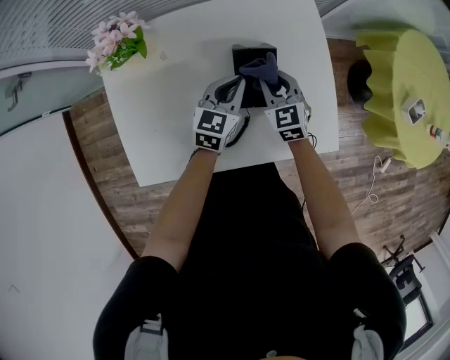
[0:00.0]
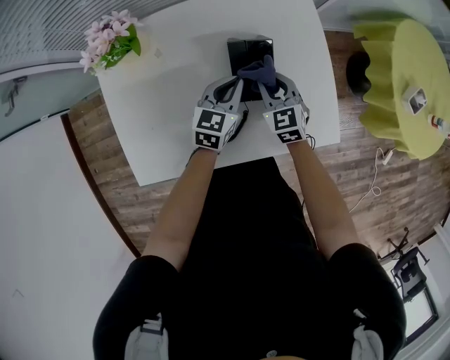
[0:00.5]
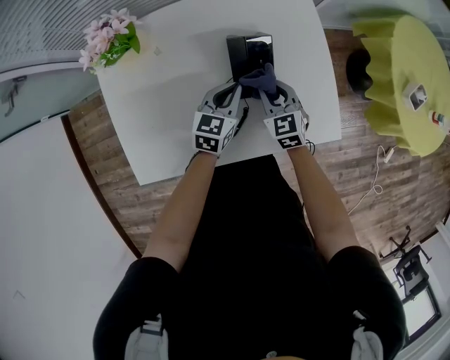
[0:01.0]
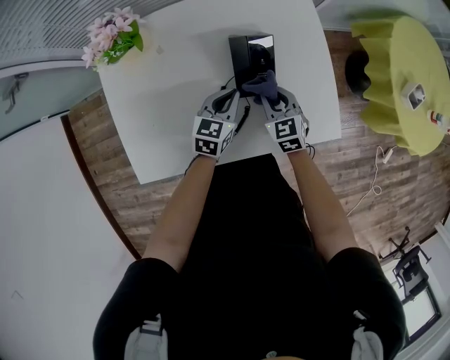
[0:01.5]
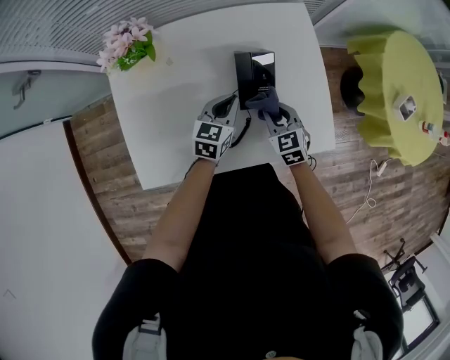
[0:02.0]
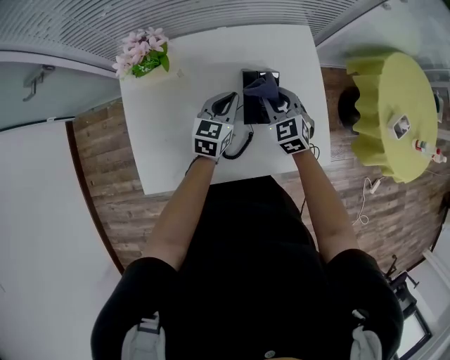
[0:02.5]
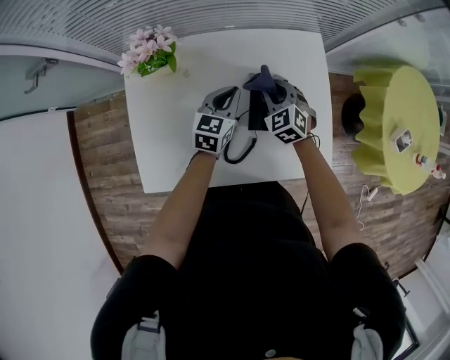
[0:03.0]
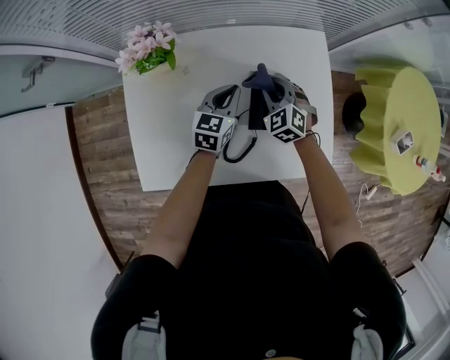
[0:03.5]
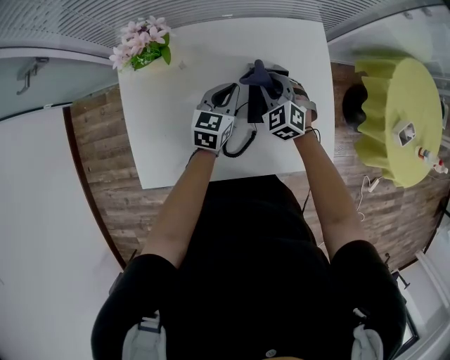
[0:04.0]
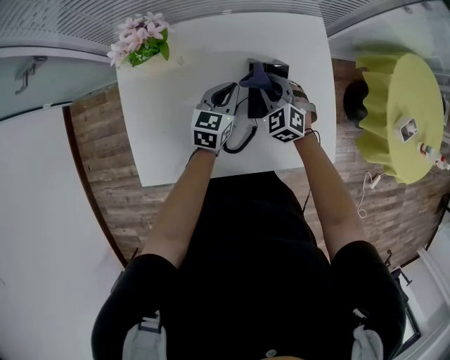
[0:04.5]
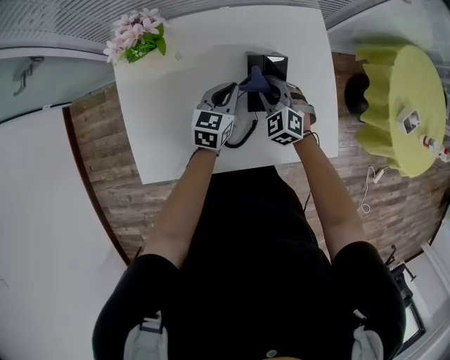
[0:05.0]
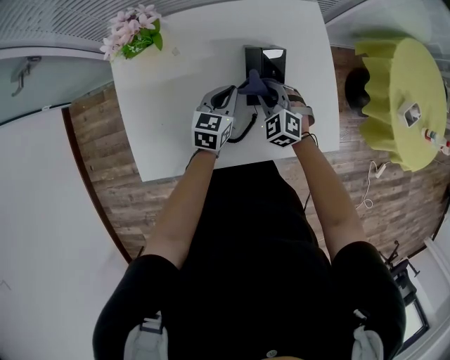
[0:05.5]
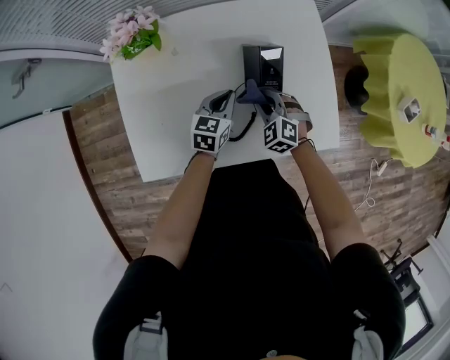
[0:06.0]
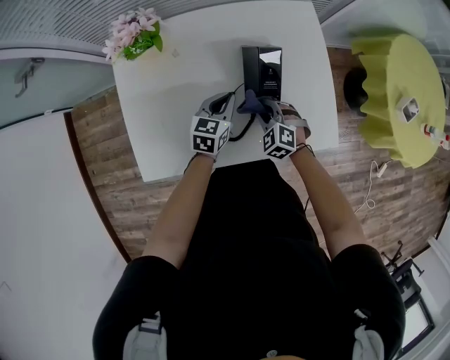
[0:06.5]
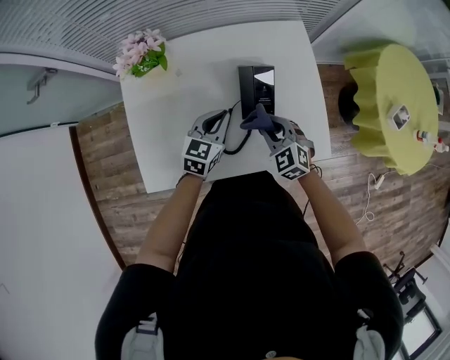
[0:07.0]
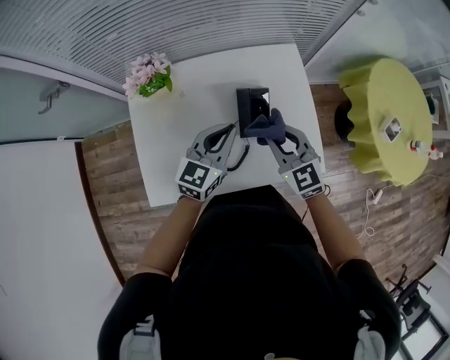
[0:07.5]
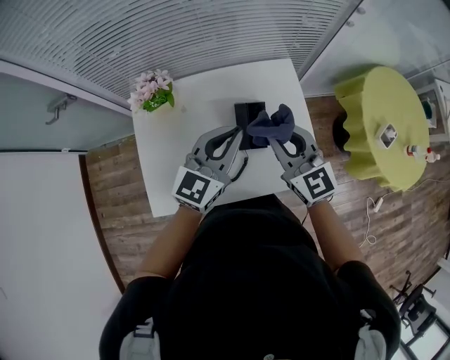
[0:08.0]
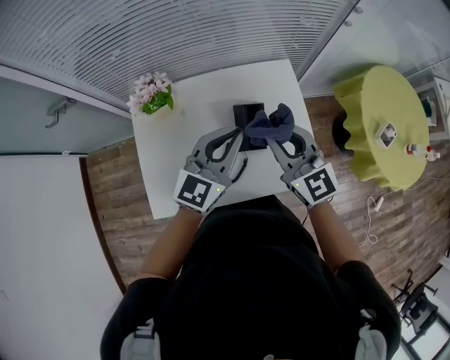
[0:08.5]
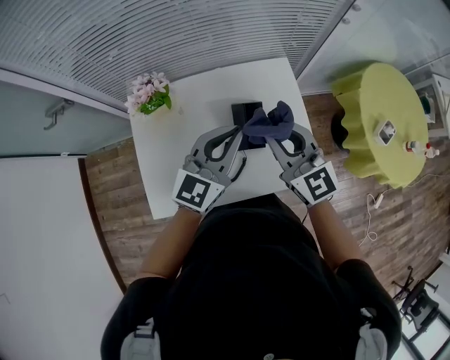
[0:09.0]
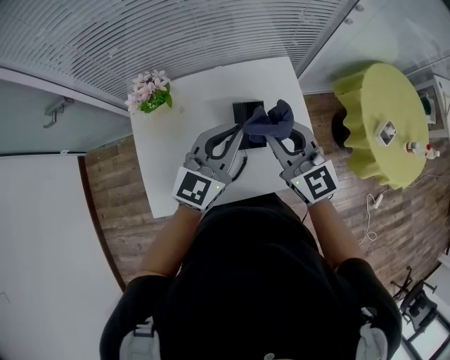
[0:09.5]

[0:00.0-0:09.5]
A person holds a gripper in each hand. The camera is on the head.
0:00.0 to 0:02.0: The left gripper travels backward by about 5 cm; the right gripper heads backward, covering about 10 cm.
0:02.0 to 0:04.0: The right gripper heads forward and to the left, covering roughly 15 cm, and rotates approximately 30 degrees. The left gripper travels forward by about 5 cm.
0:04.0 to 0:05.5: The grippers both shift backward by roughly 5 cm.
0:05.5 to 0:07.5: The grippers both shift upward by about 20 cm. The left gripper rotates some 20 degrees. The right gripper changes its angle by roughly 30 degrees.
0:07.5 to 0:09.5: Both grippers travel together upward, roughly 10 cm.

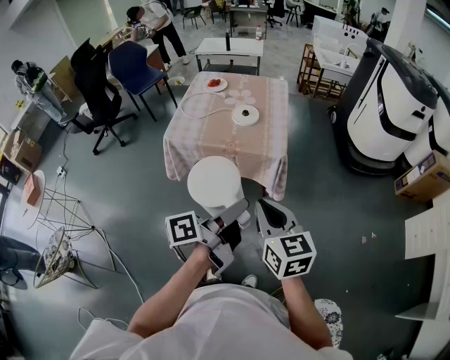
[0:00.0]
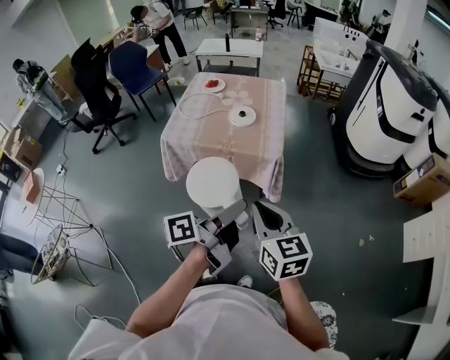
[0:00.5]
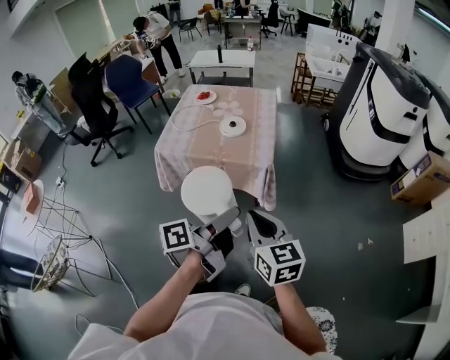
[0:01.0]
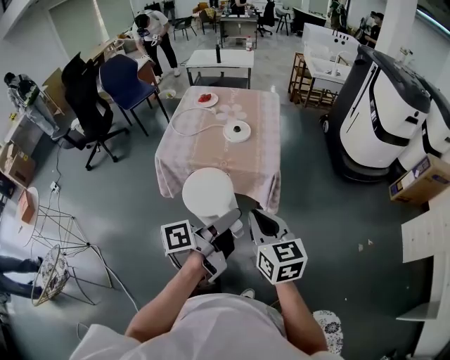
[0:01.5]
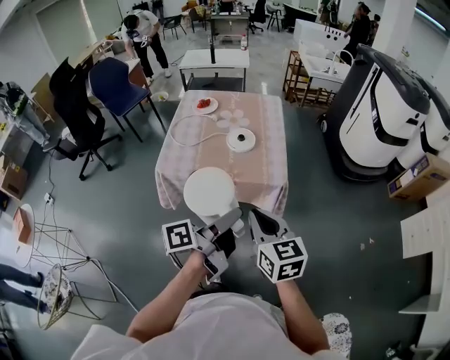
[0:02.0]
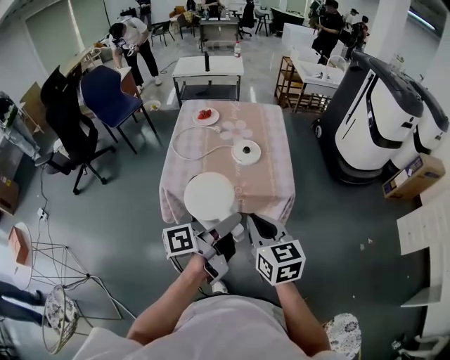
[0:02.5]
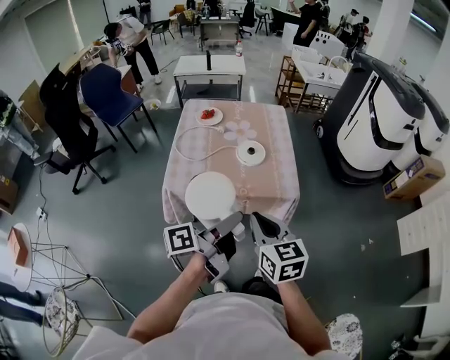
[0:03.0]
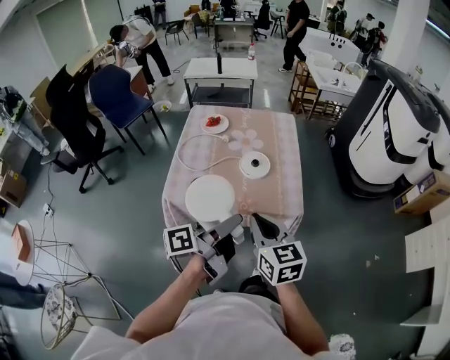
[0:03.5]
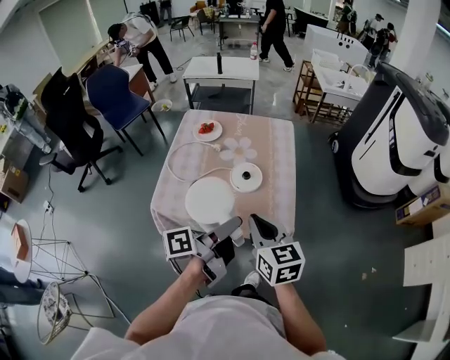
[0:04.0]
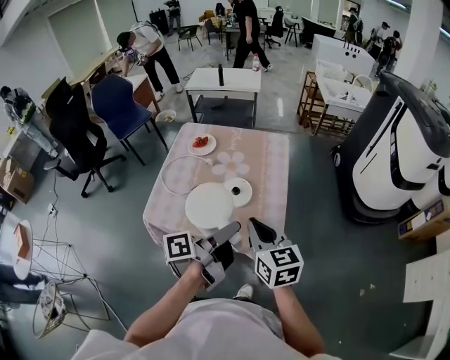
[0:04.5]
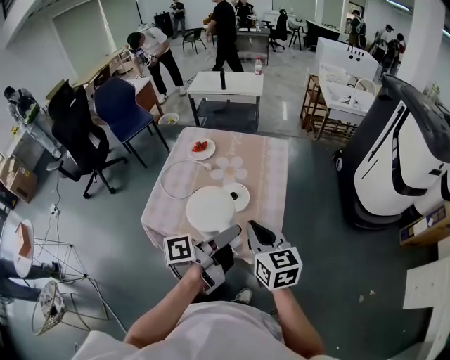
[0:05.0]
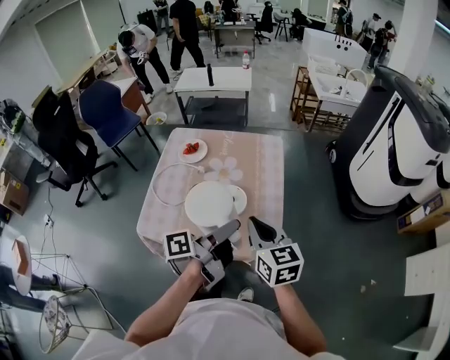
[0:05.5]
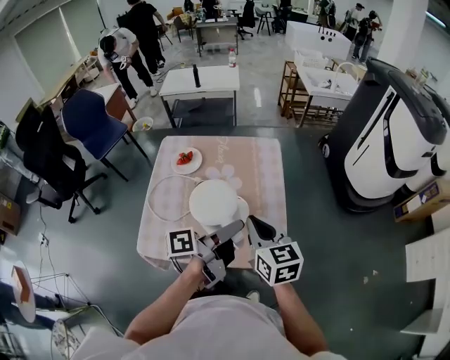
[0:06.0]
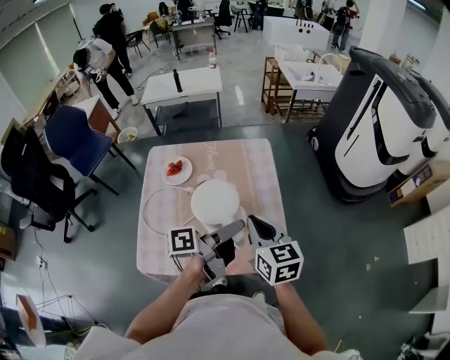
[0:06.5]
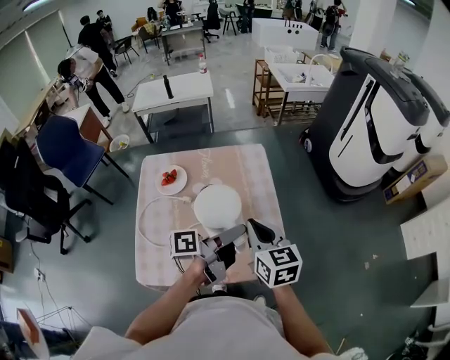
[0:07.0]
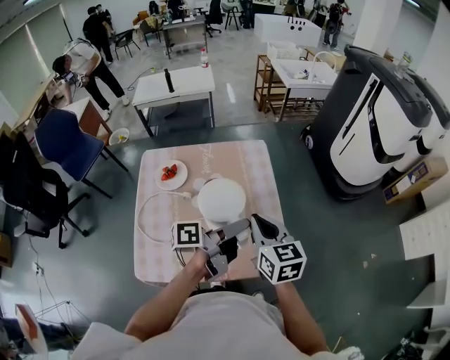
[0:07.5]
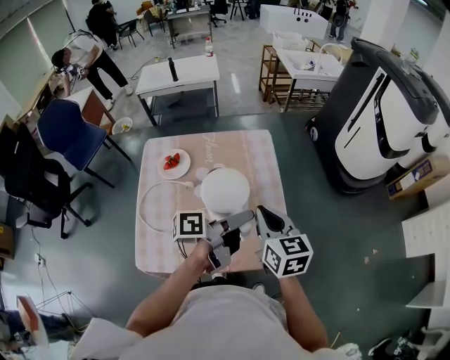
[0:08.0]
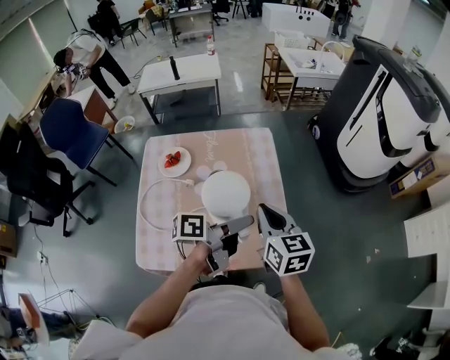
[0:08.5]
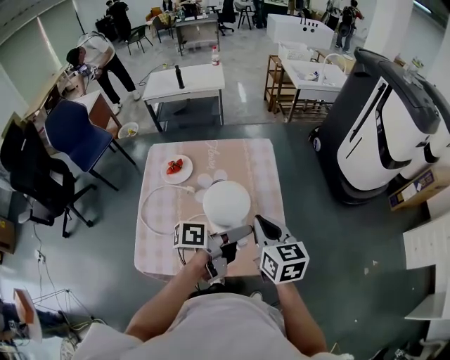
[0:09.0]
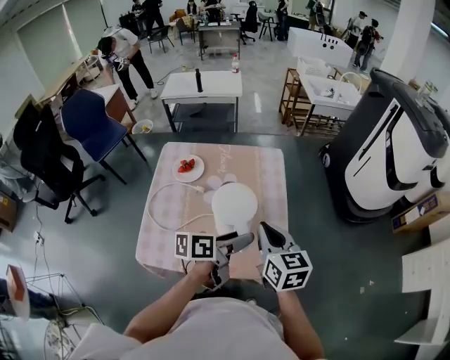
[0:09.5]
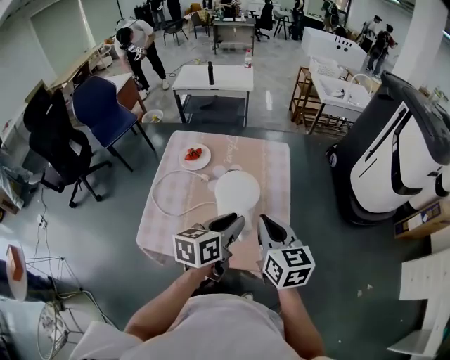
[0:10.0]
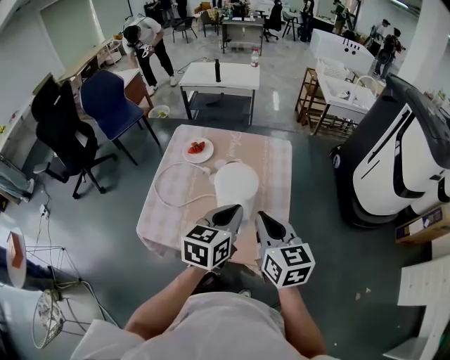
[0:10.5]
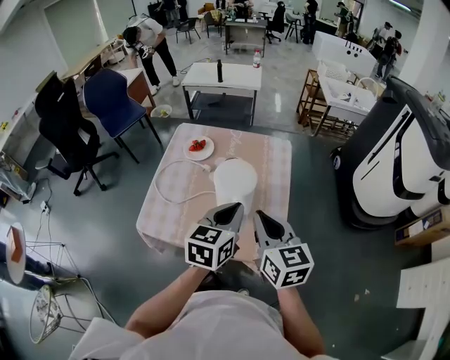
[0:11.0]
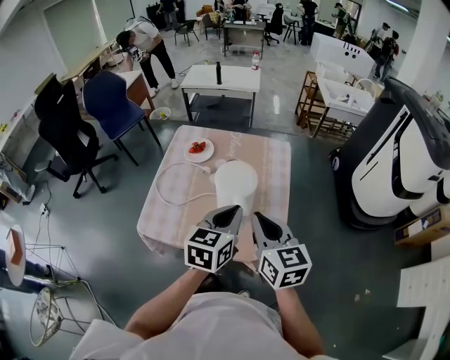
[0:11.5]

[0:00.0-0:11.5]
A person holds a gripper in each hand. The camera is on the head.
0:00.0 to 0:02.0: The right gripper changes place by about 15 cm.
0:02.0 to 0:04.0: The right gripper changes place by some 20 cm.
0:04.0 to 0:06.0: The right gripper ends up roughly 15 cm from where it was.
0:06.0 to 0:07.5: The right gripper moves about 5 cm.
0:09.5 to 0:11.5: The right gripper moves about 10 cm.

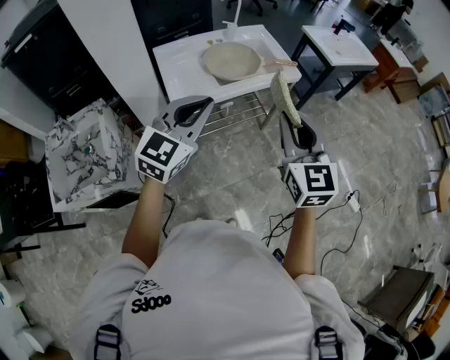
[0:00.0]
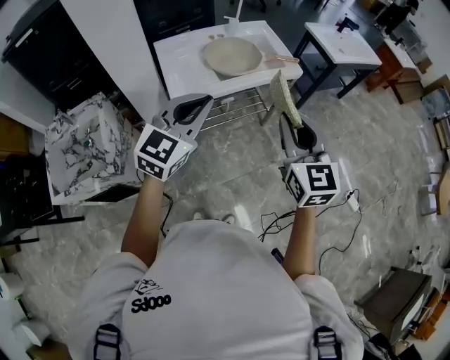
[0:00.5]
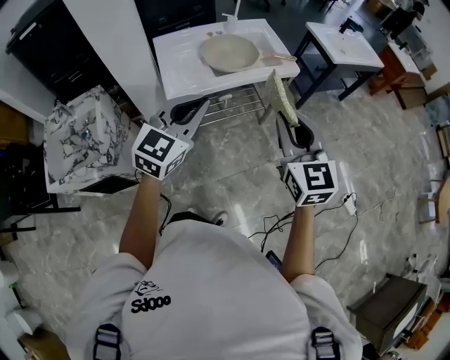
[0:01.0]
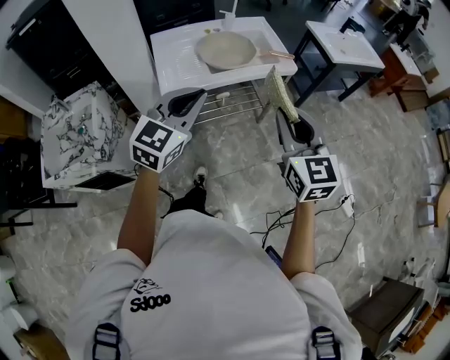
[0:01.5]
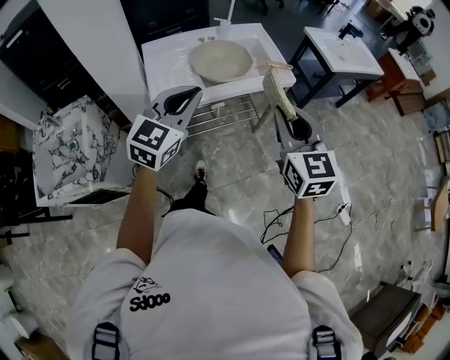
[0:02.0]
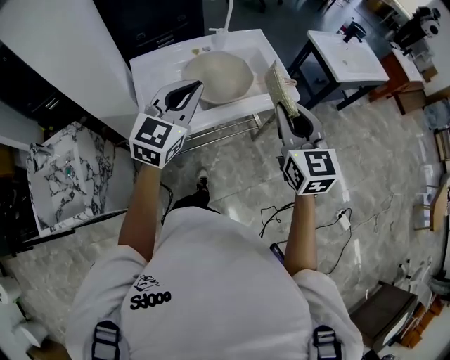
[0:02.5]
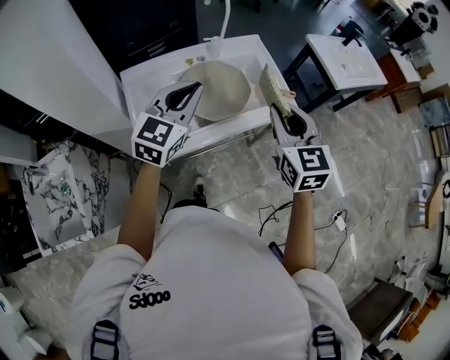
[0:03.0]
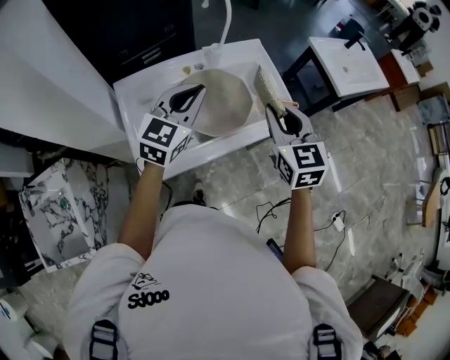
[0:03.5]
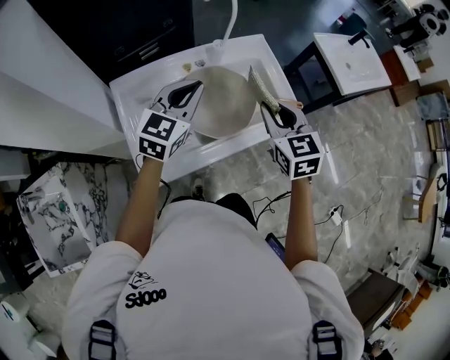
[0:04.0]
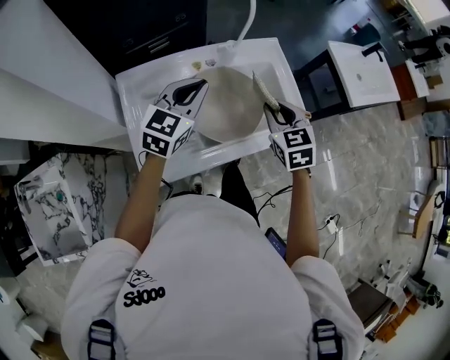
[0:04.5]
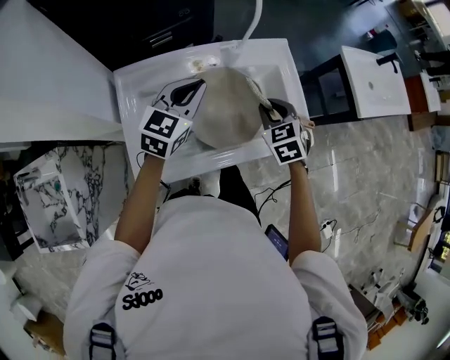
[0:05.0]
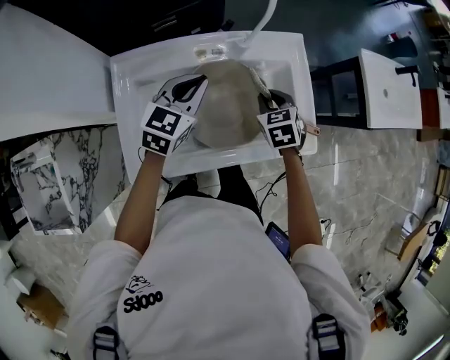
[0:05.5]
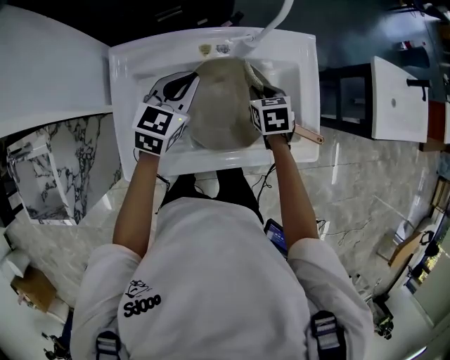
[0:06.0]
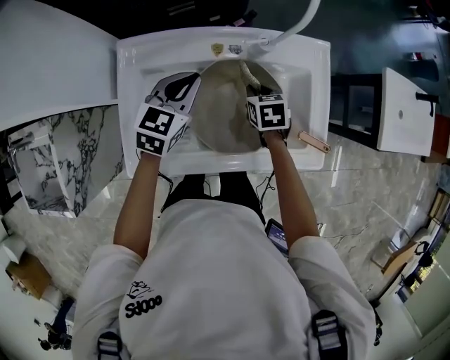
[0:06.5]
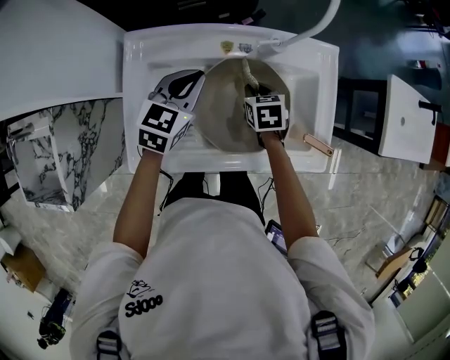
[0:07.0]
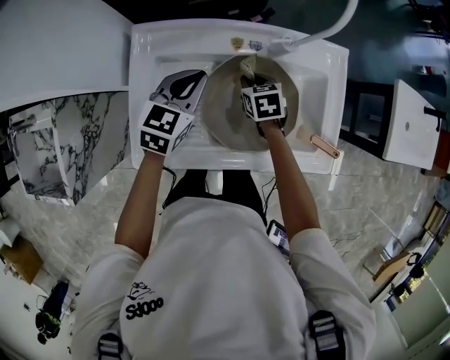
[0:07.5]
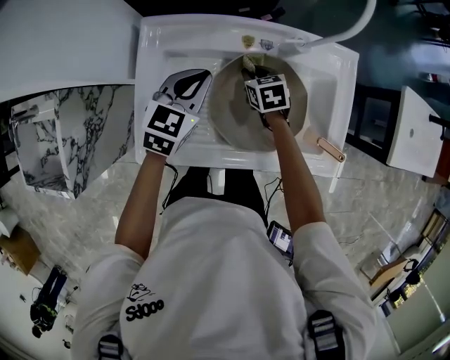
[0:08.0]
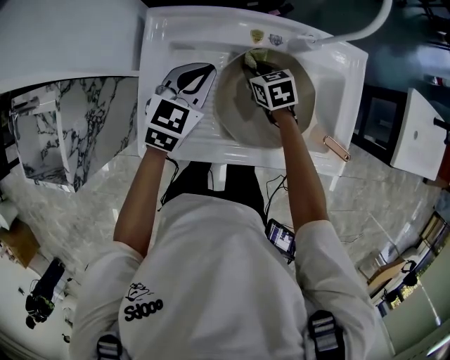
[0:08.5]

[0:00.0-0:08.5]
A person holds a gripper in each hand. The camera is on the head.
0:00.0 to 0:02.0: The right gripper shifts roughly 10 cm forward and to the right. Meanwhile the left gripper shifts some 10 cm forward.
0:02.0 to 0:04.0: The grippers both shift forward by about 35 cm.
0:04.0 to 0:06.5: The left gripper goes roughly 15 cm downward, forward and to the left, and rotates approximately 30 degrees; the right gripper is displaced downward and forward by approximately 30 cm, and points its fingers approximately 30 degrees further downward.
0:06.5 to 0:08.5: The right gripper heads to the left, covering some 10 cm, and rotates about 20 degrees, while the left gripper shifts by approximately 5 cm.
